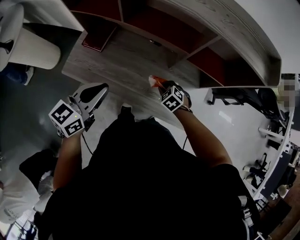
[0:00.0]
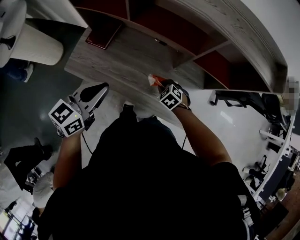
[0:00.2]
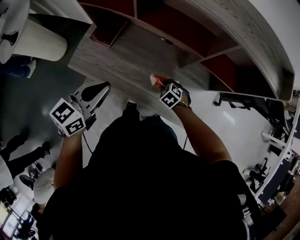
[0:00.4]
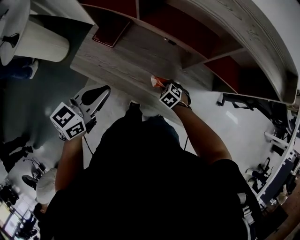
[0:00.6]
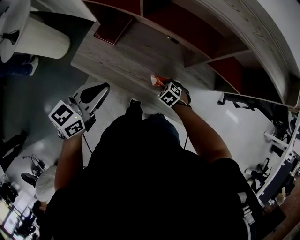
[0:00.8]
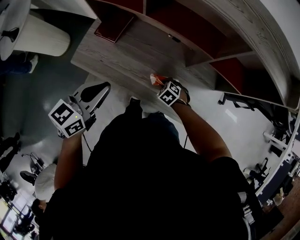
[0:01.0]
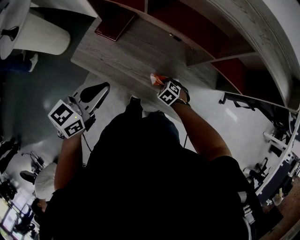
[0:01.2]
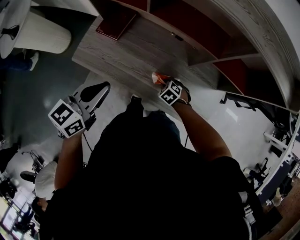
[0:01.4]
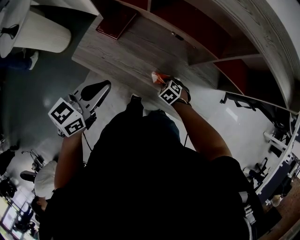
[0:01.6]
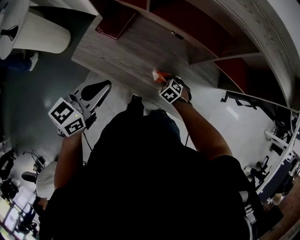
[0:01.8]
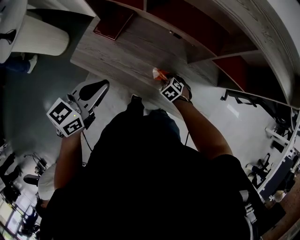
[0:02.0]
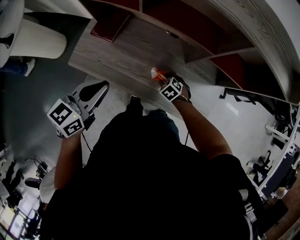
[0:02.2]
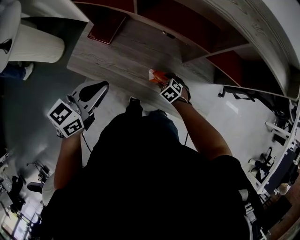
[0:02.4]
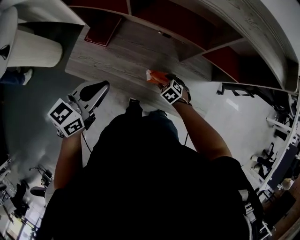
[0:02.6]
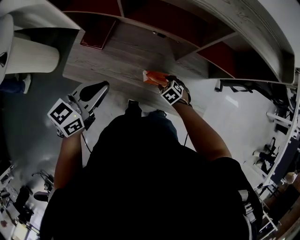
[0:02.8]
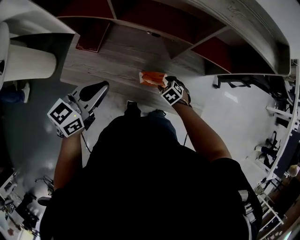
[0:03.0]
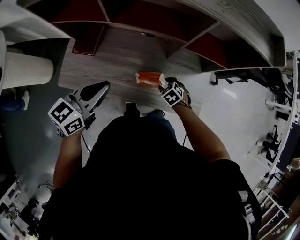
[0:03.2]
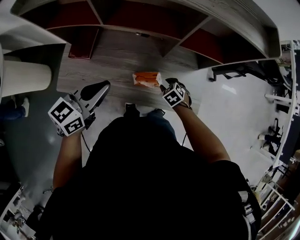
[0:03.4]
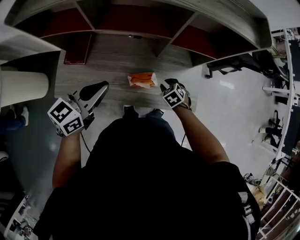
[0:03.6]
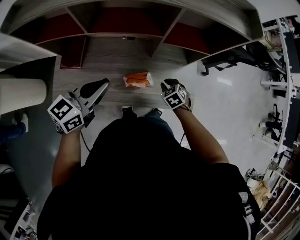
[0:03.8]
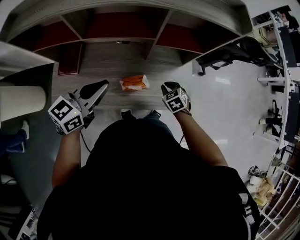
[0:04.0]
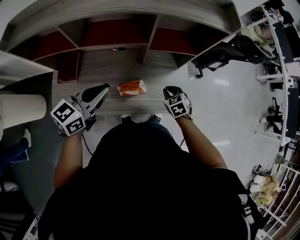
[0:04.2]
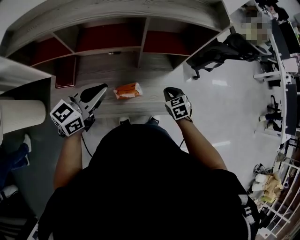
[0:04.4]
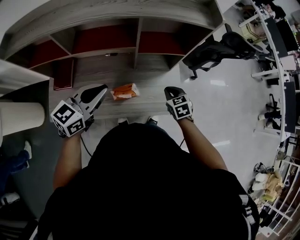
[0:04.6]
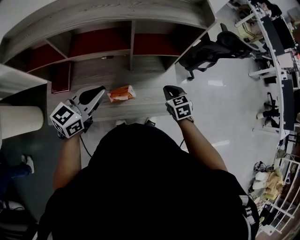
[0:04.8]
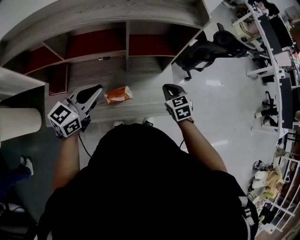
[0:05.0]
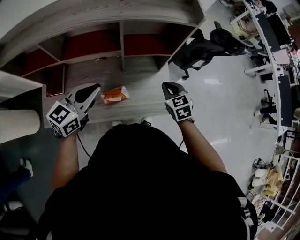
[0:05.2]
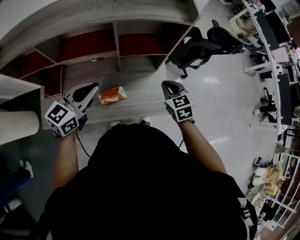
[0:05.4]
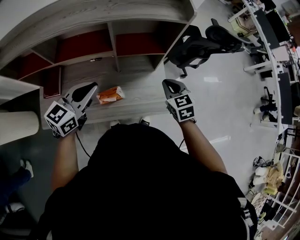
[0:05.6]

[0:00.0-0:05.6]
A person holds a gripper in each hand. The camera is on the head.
0:00.0 to 0:01.4: The right gripper is displaced downward and to the left by approximately 10 cm; the left gripper shifts roughly 5 cm to the left.
0:01.4 to 0:02.8: The right gripper moves about 5 cm, and opens its fingers.
0:02.8 to 0:04.2: The left gripper changes place by roughly 15 cm, and rotates roughly 20 degrees, while the right gripper ends up about 20 cm from where it was, rotates about 40 degrees, and closes its fingers.
0:04.2 to 0:05.6: The left gripper moves to the right, approximately 10 cm. Meanwhile the right gripper shifts about 20 cm upward and to the right.

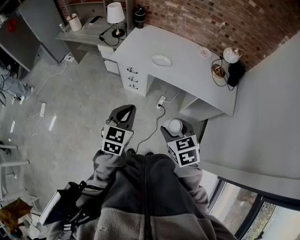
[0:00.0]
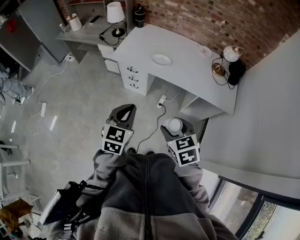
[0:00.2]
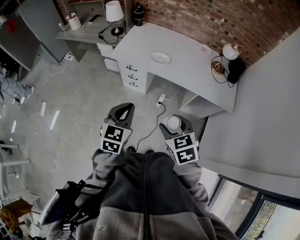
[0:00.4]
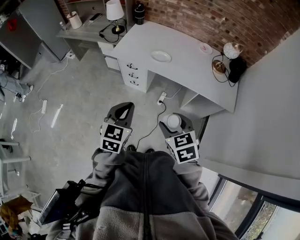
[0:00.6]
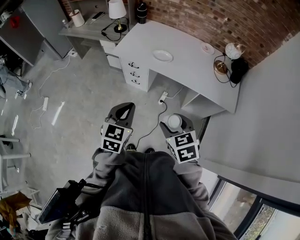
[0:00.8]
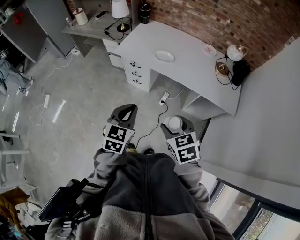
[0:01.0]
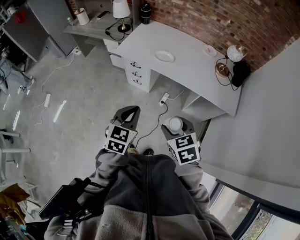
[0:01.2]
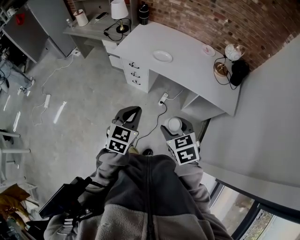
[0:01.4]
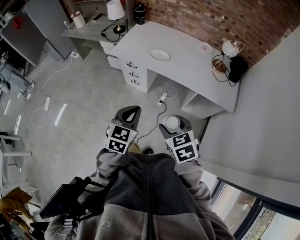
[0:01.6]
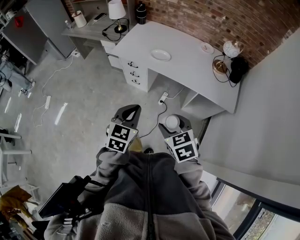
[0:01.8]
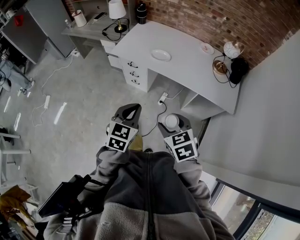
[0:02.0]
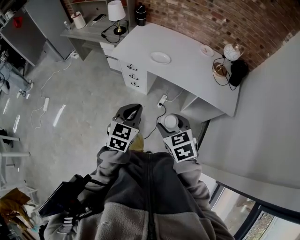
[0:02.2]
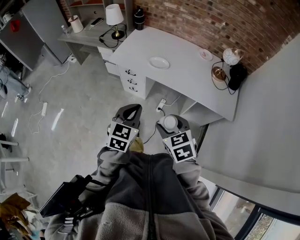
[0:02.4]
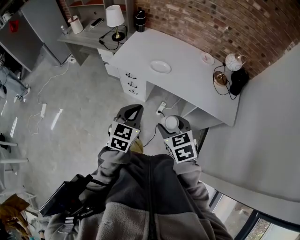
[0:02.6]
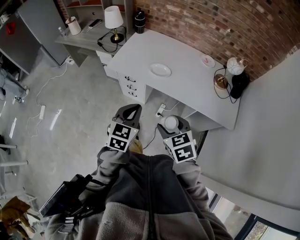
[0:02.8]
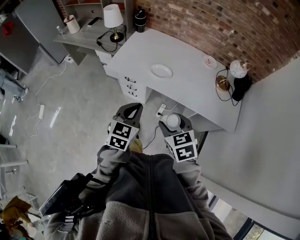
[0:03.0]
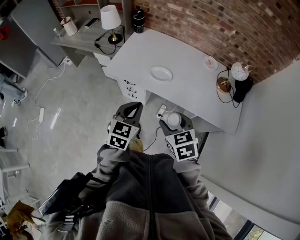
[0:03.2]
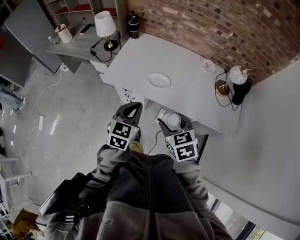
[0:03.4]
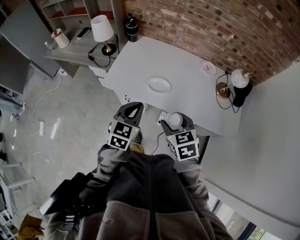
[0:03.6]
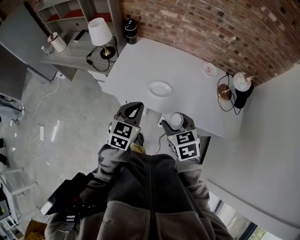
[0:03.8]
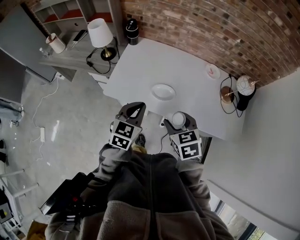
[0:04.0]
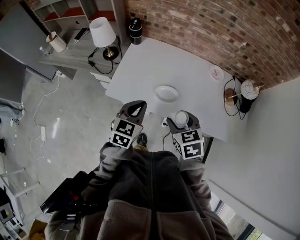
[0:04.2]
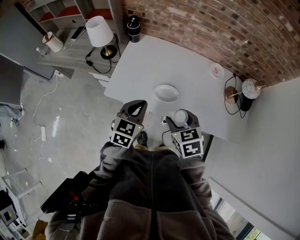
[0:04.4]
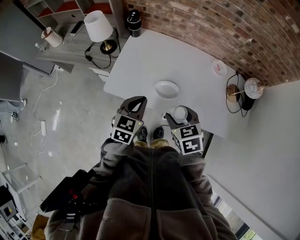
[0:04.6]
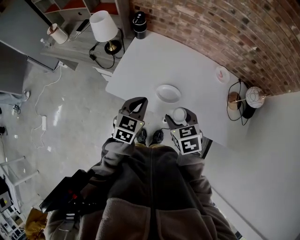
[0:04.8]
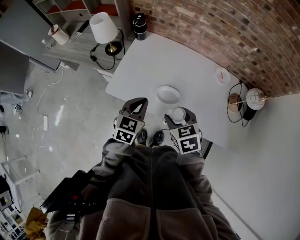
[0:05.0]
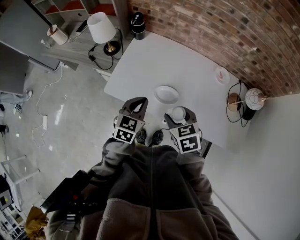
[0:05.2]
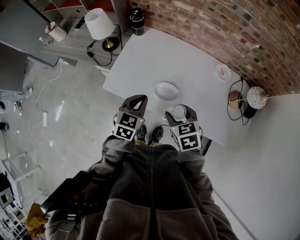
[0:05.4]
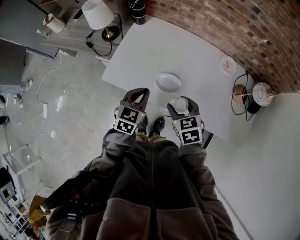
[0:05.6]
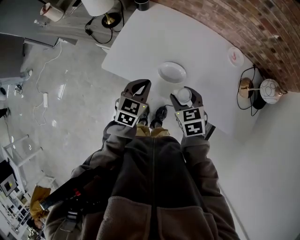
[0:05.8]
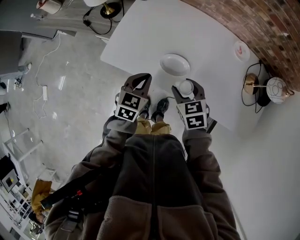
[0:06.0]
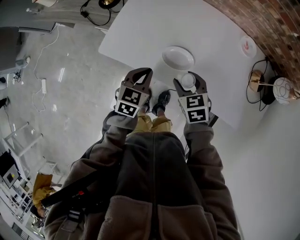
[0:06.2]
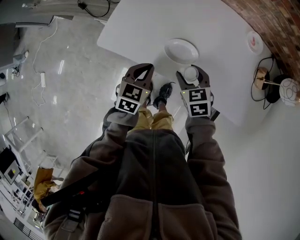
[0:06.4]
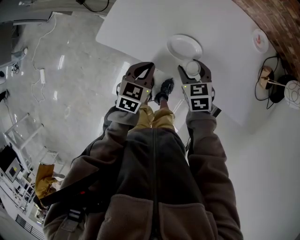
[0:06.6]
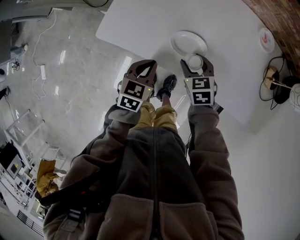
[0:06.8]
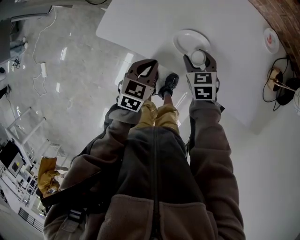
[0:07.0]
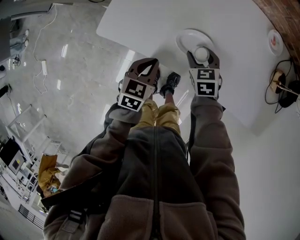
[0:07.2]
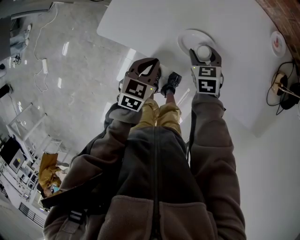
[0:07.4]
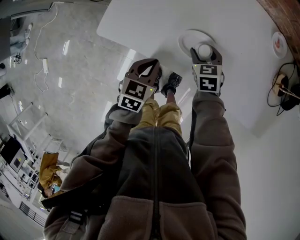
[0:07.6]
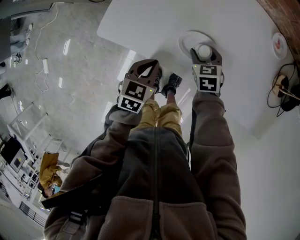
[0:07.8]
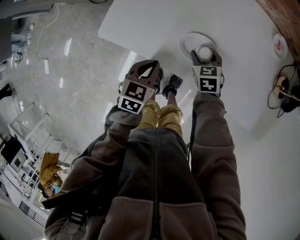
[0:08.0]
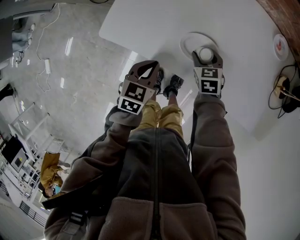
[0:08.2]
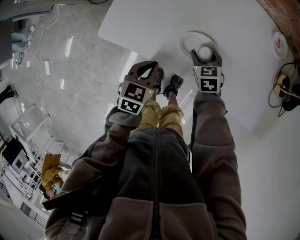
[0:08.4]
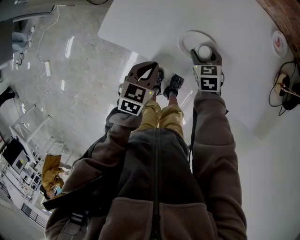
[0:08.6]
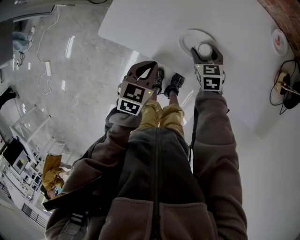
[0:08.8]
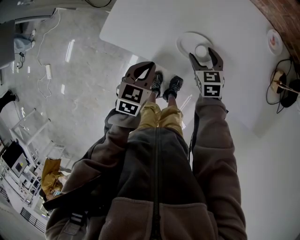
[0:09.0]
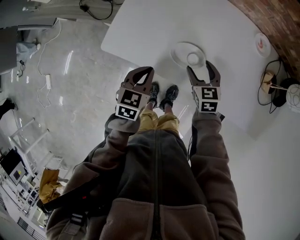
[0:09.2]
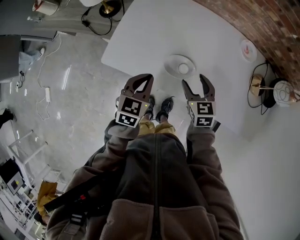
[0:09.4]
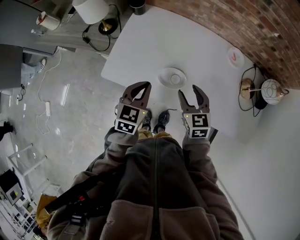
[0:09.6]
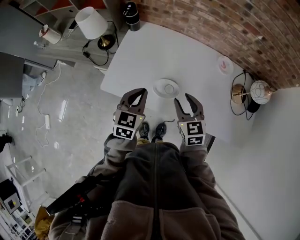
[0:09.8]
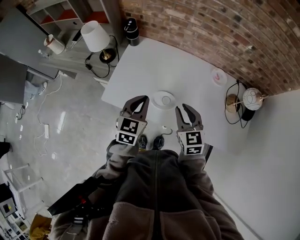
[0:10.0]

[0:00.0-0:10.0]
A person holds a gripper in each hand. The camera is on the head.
0:00.0 to 0:01.4: The grippers both shift to the right by about 5 cm.
0:01.4 to 0:02.8: The grippers both shift forward by approximately 15 cm.
0:02.8 to 0:04.2: Both grippers travel together forward, roughly 25 cm.
0:04.2 to 0:05.8: The grippers both shift downward and forward by some 15 cm.
0:05.8 to 0:07.2: The right gripper is displaced downward and forward by some 20 cm, while the left gripper moves downward, approximately 15 cm.
0:07.2 to 0:08.6: There are only small adjustments of the grippers.
0:08.6 to 0:10.0: Both grippers move upward, some 30 cm. The right gripper changes its angle by about 30 degrees, and closes, while the left gripper turns by approximately 30 degrees.

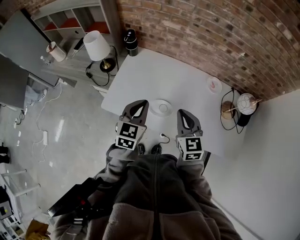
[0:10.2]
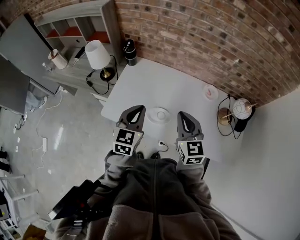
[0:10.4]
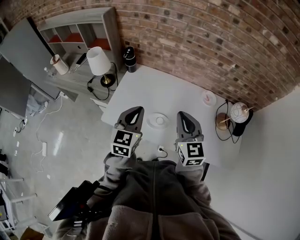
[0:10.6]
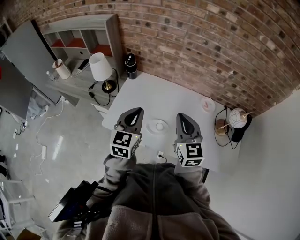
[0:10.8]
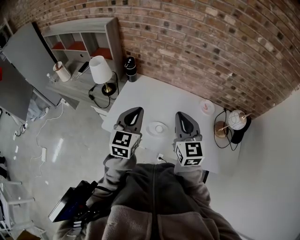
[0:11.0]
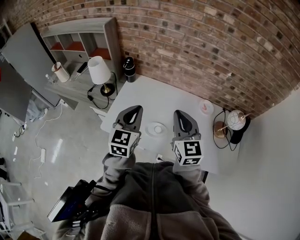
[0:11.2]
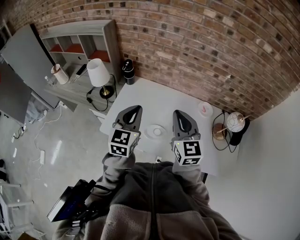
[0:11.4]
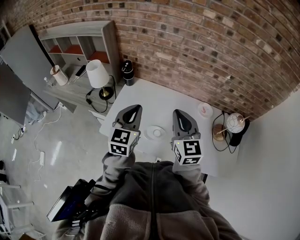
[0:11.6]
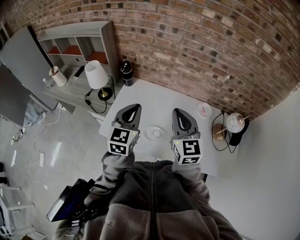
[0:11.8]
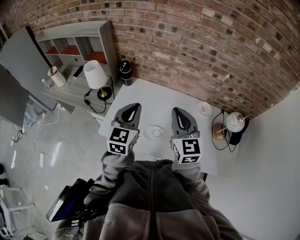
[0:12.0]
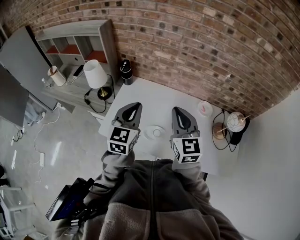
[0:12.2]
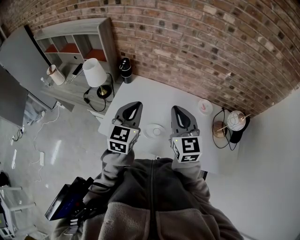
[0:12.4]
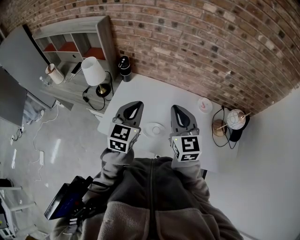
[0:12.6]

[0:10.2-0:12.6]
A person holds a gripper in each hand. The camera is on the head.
0:10.2 to 0:11.4: Both grippers travel together upward, roughly 10 cm.
0:11.4 to 0:12.6: The grippers make only small movements.

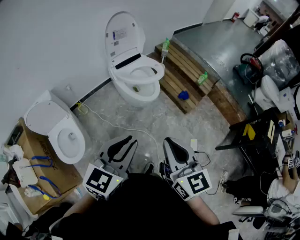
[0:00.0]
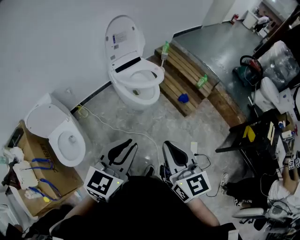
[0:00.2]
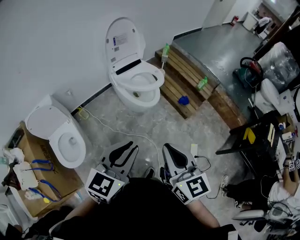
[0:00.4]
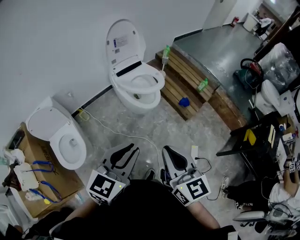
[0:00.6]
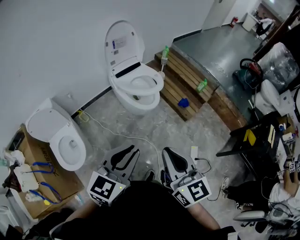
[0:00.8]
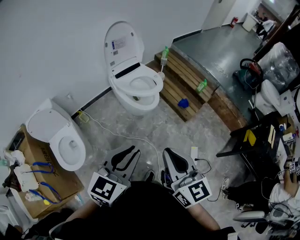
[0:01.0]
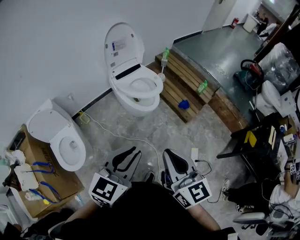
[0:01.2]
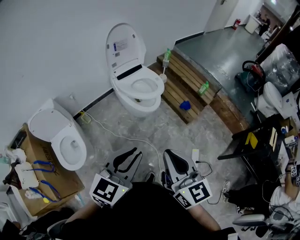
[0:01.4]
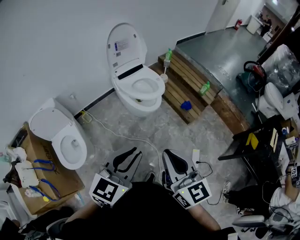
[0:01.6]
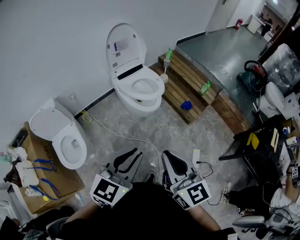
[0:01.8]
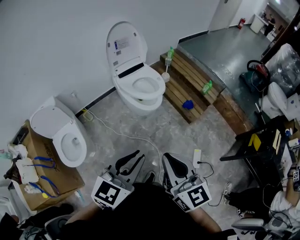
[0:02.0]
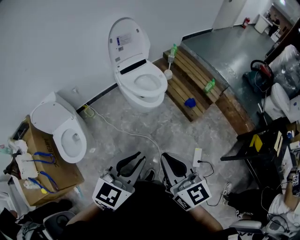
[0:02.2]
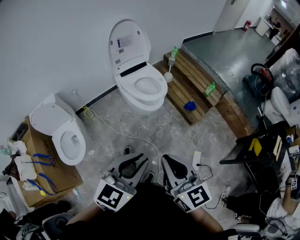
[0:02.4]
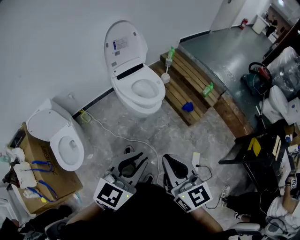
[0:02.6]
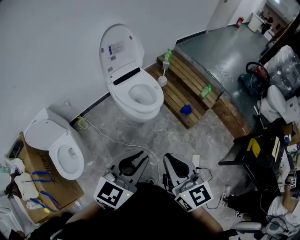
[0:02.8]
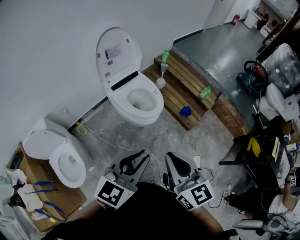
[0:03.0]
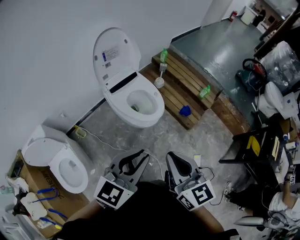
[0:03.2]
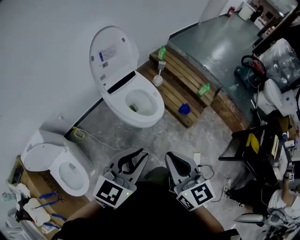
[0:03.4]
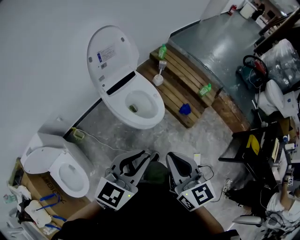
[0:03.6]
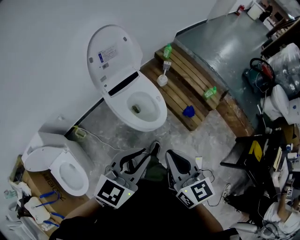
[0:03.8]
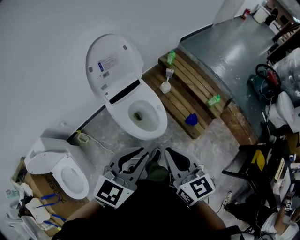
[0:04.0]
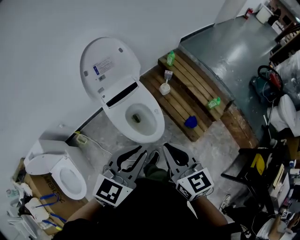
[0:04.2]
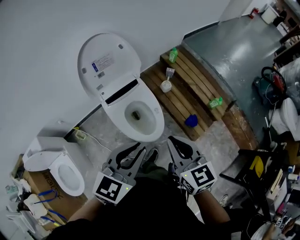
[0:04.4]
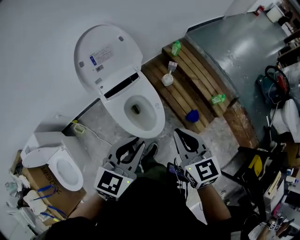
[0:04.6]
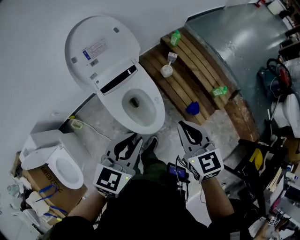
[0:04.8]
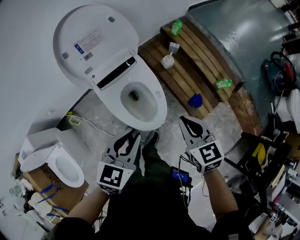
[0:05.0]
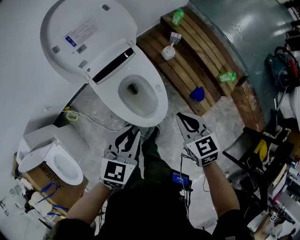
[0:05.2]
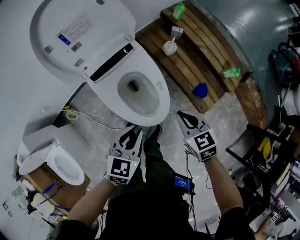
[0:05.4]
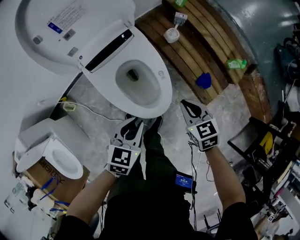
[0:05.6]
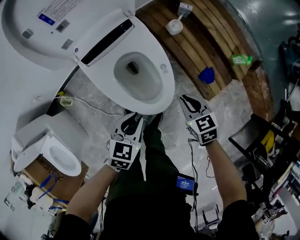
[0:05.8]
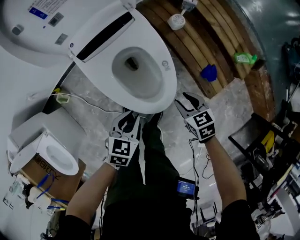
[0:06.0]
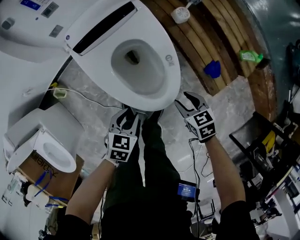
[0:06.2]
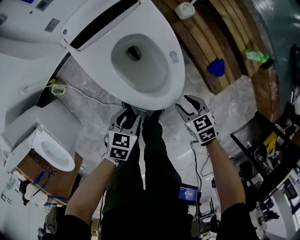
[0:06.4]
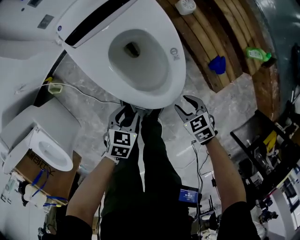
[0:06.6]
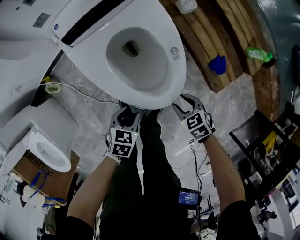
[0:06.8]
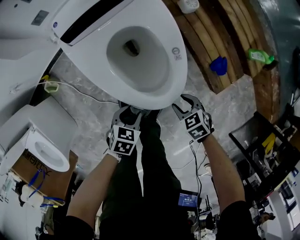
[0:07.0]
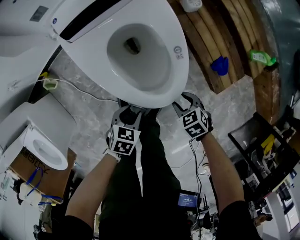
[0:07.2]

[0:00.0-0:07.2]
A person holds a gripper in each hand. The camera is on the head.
0:00.0 to 0:01.4: The grippers move only a little.
0:01.4 to 0:02.8: Both grippers travel together forward, about 10 cm.
0:02.8 to 0:04.4: Both grippers move forward, approximately 40 cm.
0:04.4 to 0:05.8: The two grippers go some 40 cm downward. The right gripper rotates some 30 degrees. The left gripper swivels approximately 30 degrees.
0:05.8 to 0:07.2: Both grippers move downward, approximately 25 cm. The right gripper changes its angle by roughly 30 degrees, and opens its fingers. Meanwhile the left gripper rotates roughly 20 degrees, and opens its fingers.
